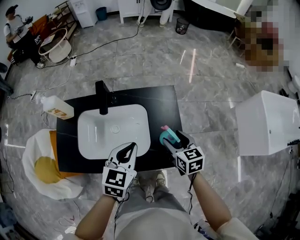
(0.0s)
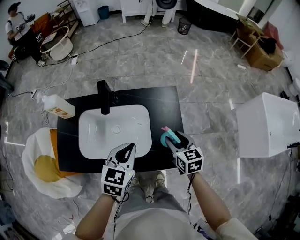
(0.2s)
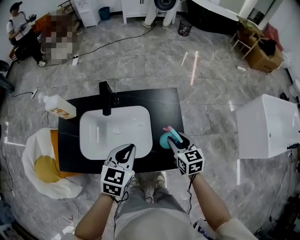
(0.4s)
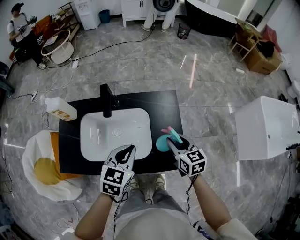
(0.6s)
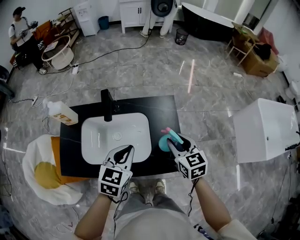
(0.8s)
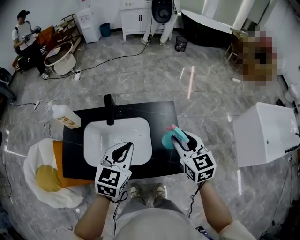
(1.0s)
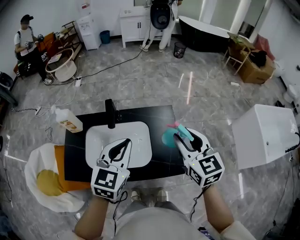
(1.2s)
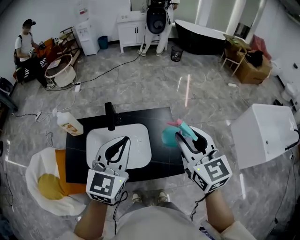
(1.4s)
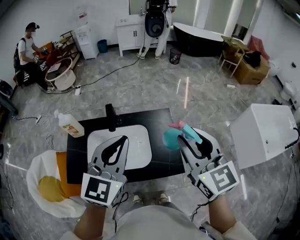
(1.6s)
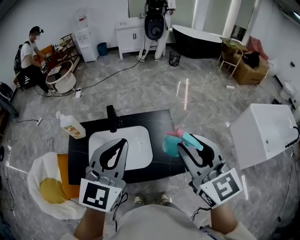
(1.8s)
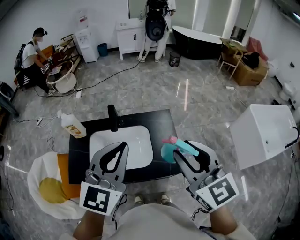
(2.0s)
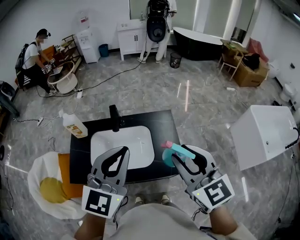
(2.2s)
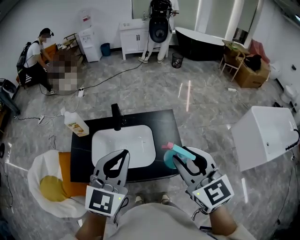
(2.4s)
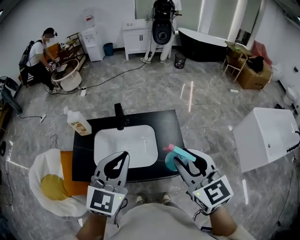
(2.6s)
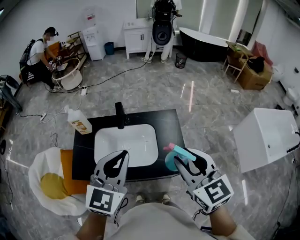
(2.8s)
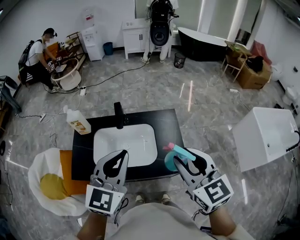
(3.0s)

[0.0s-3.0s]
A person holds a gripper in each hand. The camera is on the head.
0.0s to 1.6s: Both grippers travel together upward, about 30 cm. The left gripper swivels approximately 30 degrees; the right gripper swivels some 30 degrees, and closes.
1.6s to 3.0s: Both grippers move backward, about 5 cm.

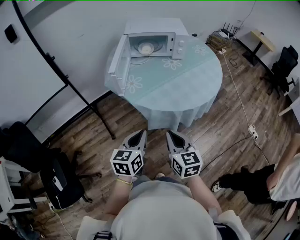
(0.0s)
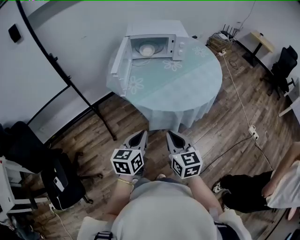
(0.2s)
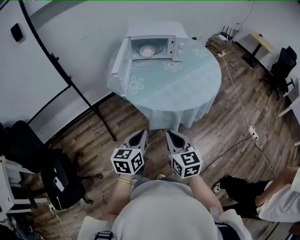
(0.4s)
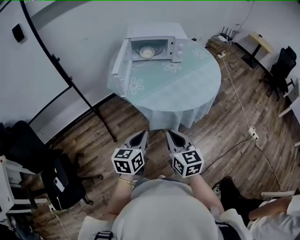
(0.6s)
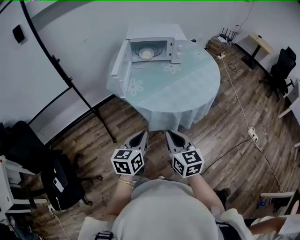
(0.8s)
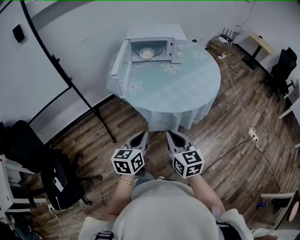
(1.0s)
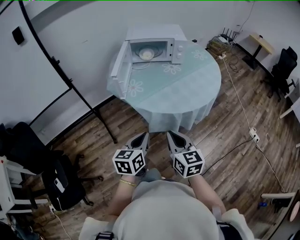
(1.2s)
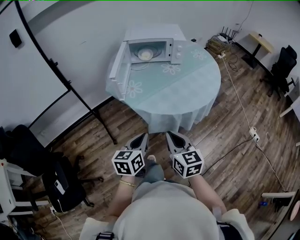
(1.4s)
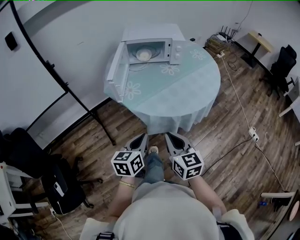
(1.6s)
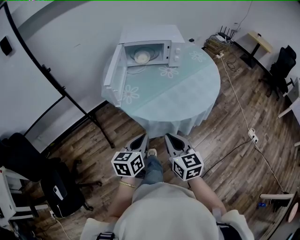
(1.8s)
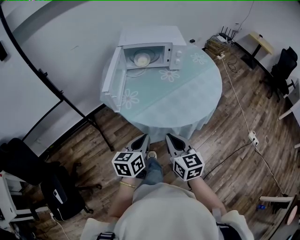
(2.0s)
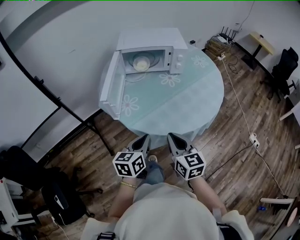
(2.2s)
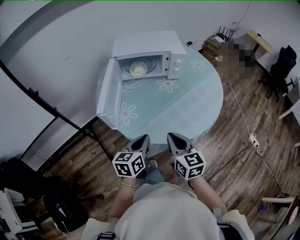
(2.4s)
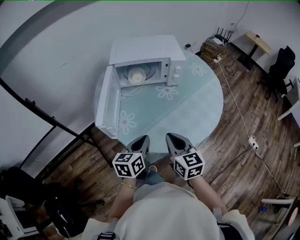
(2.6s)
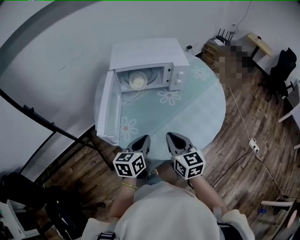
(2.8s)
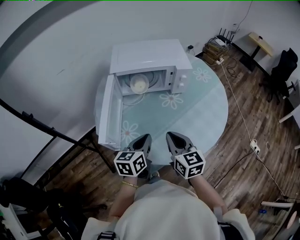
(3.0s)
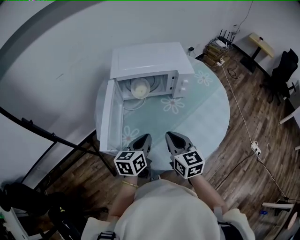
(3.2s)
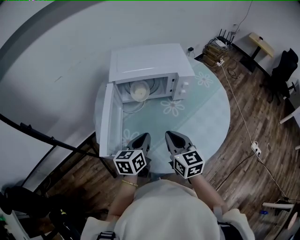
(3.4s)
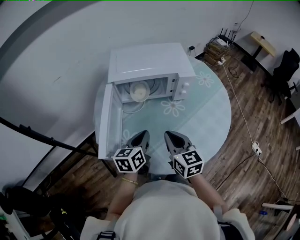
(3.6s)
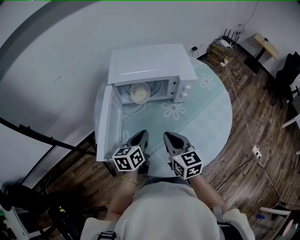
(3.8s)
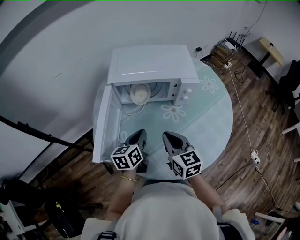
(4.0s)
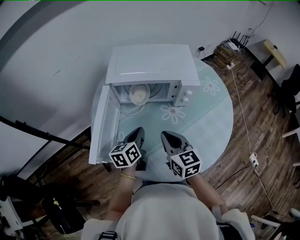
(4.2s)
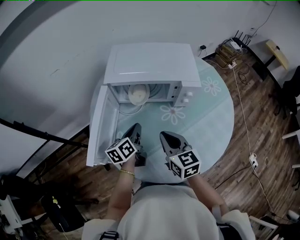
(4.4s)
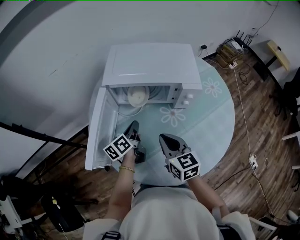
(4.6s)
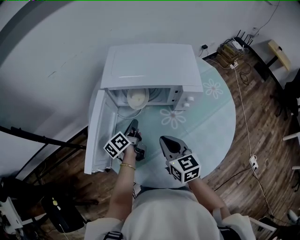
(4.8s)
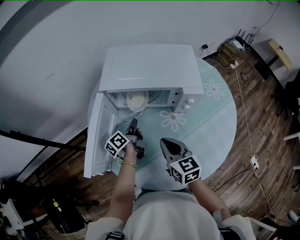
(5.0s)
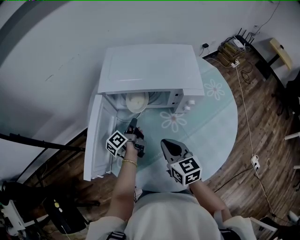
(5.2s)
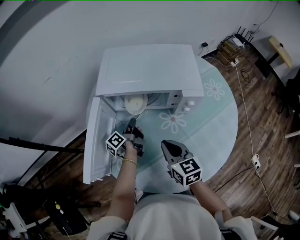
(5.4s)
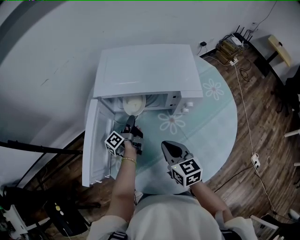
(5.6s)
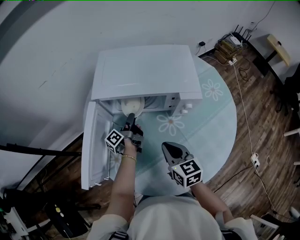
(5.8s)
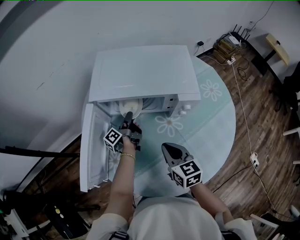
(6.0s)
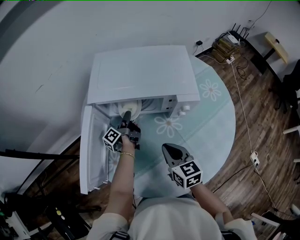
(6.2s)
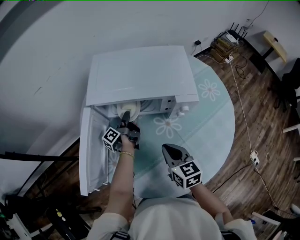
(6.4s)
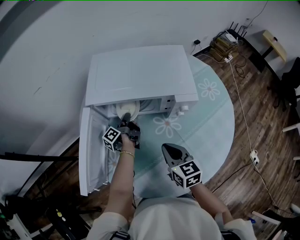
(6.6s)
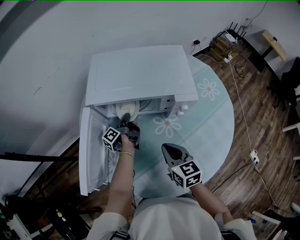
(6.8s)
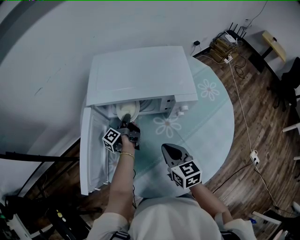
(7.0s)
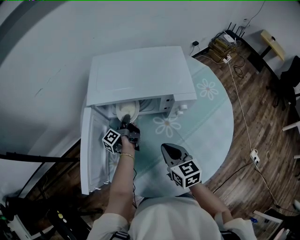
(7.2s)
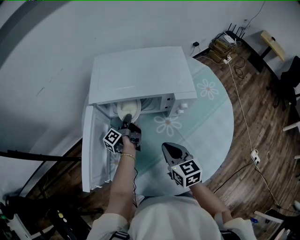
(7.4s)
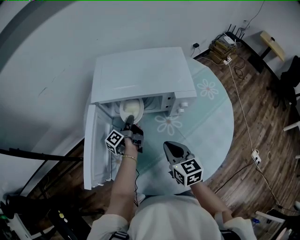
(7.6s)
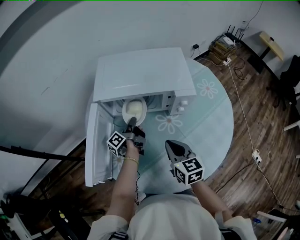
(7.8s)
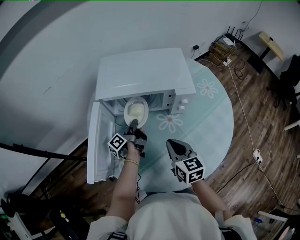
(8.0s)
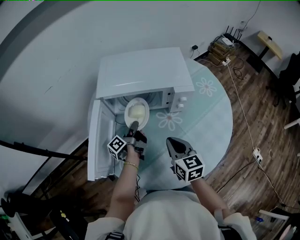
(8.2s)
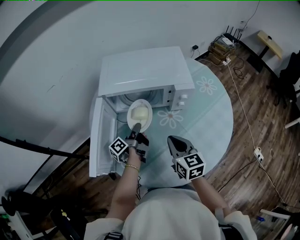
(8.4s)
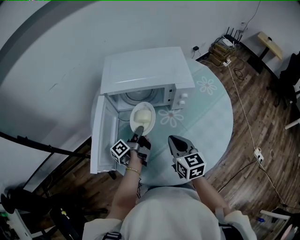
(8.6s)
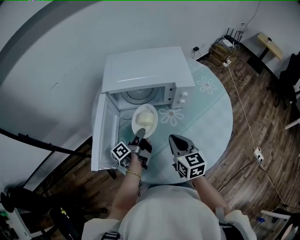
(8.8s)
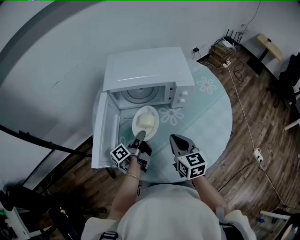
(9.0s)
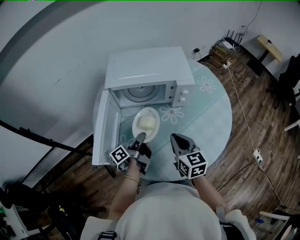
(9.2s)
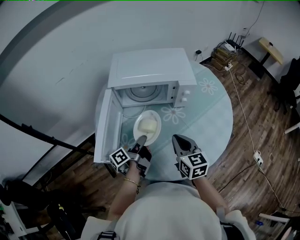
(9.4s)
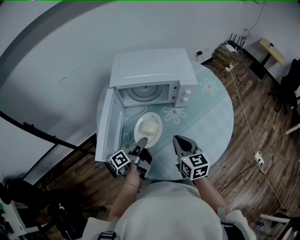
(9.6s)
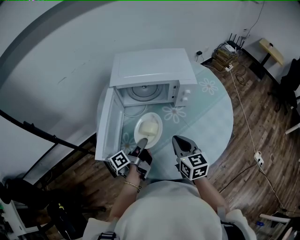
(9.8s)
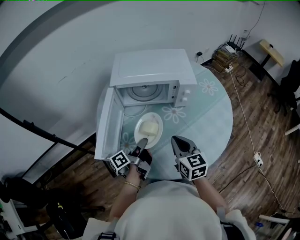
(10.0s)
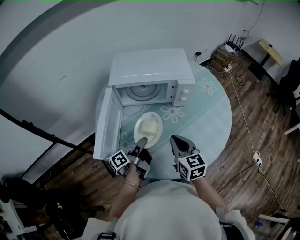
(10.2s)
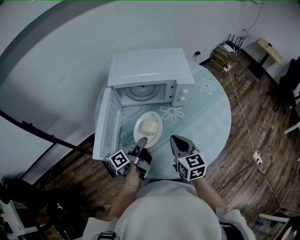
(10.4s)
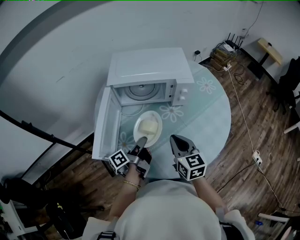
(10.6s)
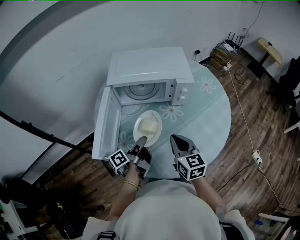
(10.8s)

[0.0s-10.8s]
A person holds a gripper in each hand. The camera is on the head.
0.0s to 1.6s: The grippers stay close to where they were, moving slightly.
1.6s to 3.0s: The grippers both shift forward by some 30 cm.
3.0s to 4.6s: Both grippers travel together forward, approximately 15 cm. The left gripper changes its angle by roughly 40 degrees.
4.6s to 6.2s: The right gripper heads downward, covering some 5 cm; the left gripper is displaced forward and downward by about 15 cm, changes its angle by roughly 40 degrees, and opens up.
6.2s to 7.8s: The left gripper shifts roughly 5 cm backward, and closes.
7.8s to 9.2s: The right gripper goes roughly 5 cm backward. The left gripper goes approximately 15 cm backward.
9.2s to 10.8s: The grippers stay close to where they were, moving slightly.

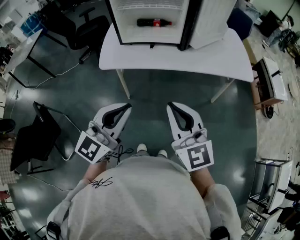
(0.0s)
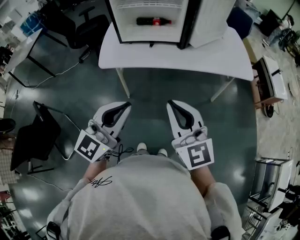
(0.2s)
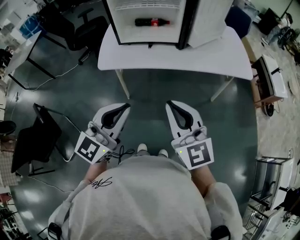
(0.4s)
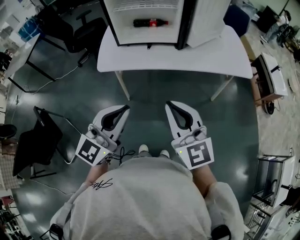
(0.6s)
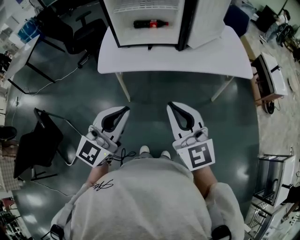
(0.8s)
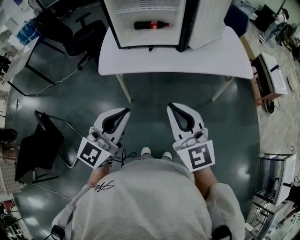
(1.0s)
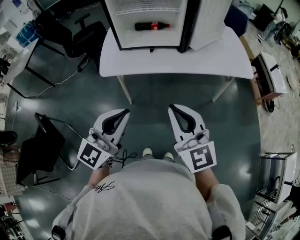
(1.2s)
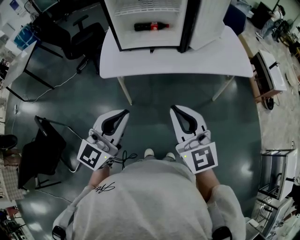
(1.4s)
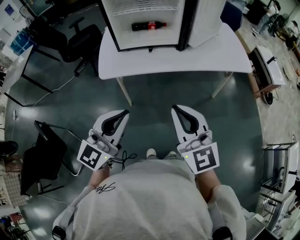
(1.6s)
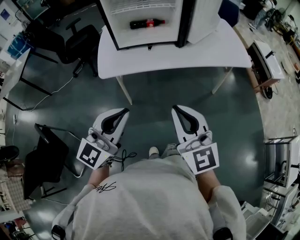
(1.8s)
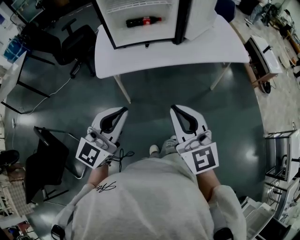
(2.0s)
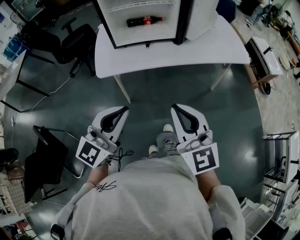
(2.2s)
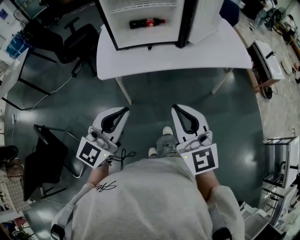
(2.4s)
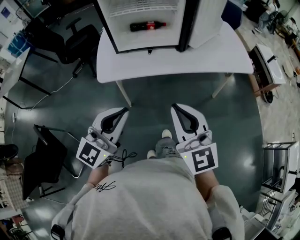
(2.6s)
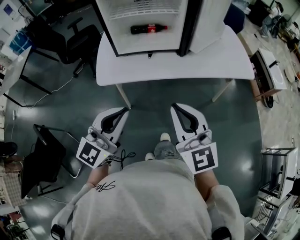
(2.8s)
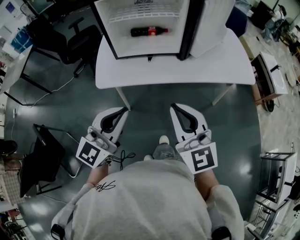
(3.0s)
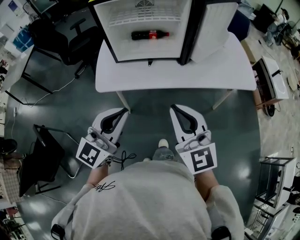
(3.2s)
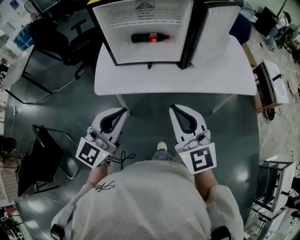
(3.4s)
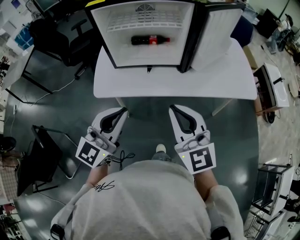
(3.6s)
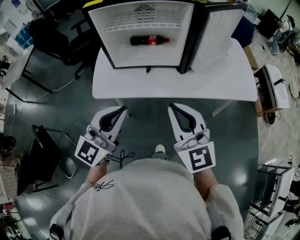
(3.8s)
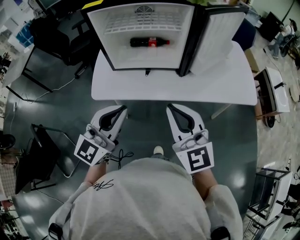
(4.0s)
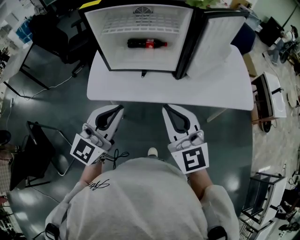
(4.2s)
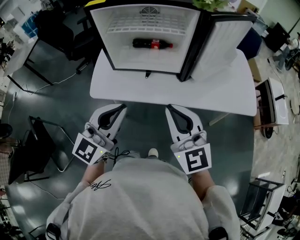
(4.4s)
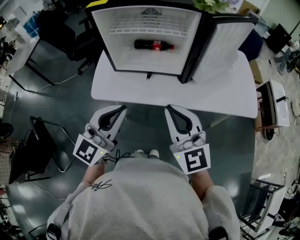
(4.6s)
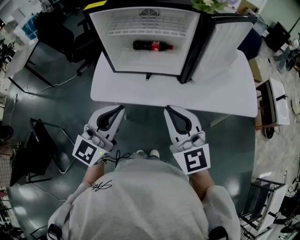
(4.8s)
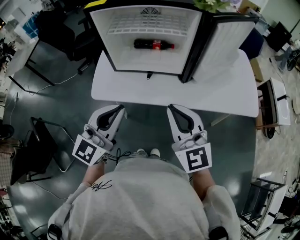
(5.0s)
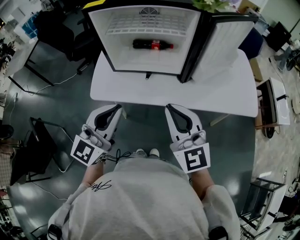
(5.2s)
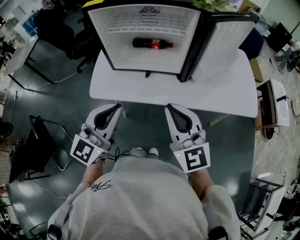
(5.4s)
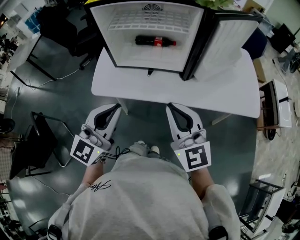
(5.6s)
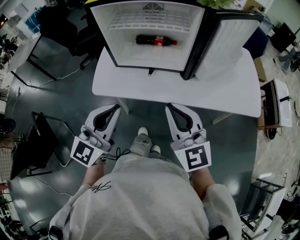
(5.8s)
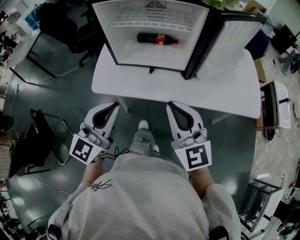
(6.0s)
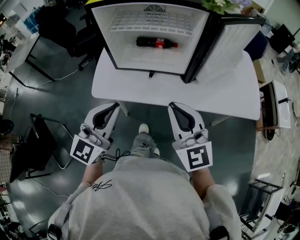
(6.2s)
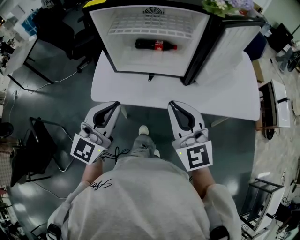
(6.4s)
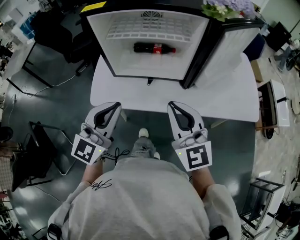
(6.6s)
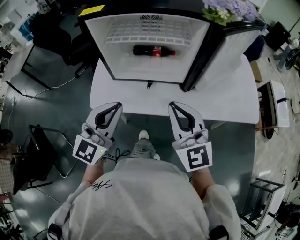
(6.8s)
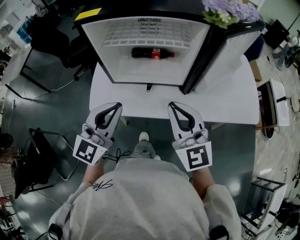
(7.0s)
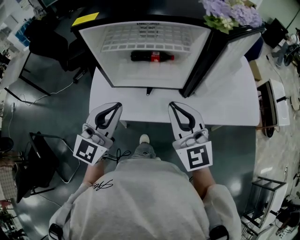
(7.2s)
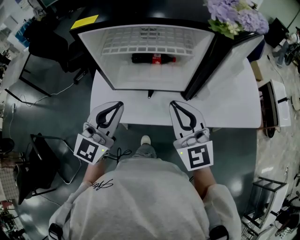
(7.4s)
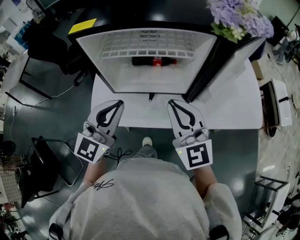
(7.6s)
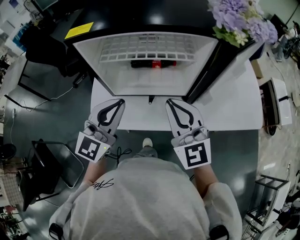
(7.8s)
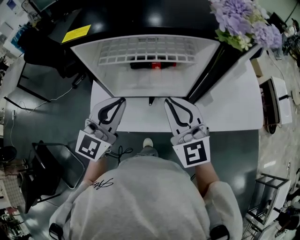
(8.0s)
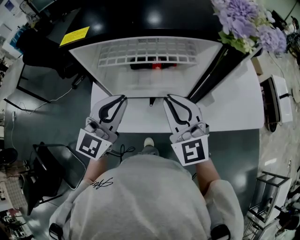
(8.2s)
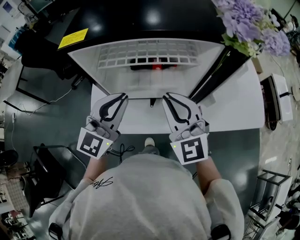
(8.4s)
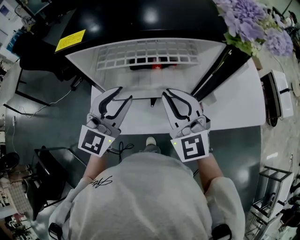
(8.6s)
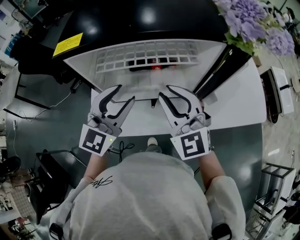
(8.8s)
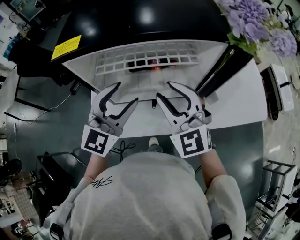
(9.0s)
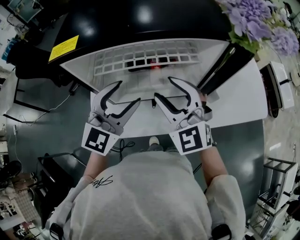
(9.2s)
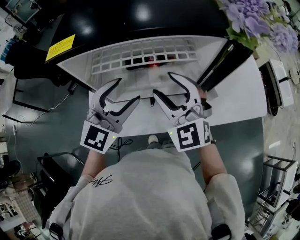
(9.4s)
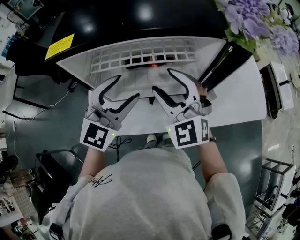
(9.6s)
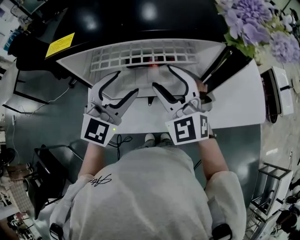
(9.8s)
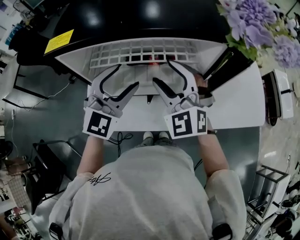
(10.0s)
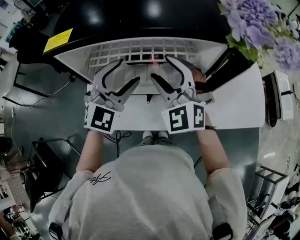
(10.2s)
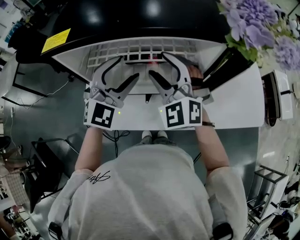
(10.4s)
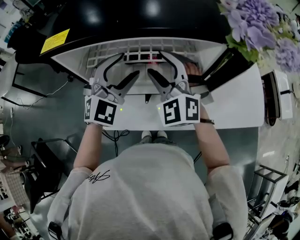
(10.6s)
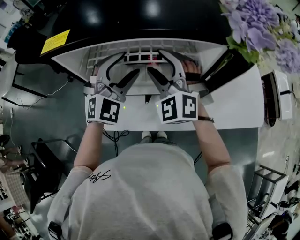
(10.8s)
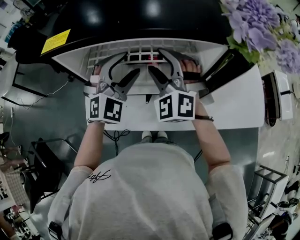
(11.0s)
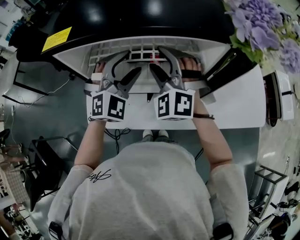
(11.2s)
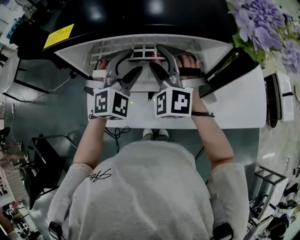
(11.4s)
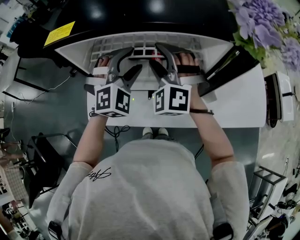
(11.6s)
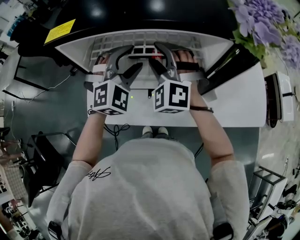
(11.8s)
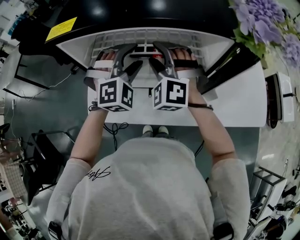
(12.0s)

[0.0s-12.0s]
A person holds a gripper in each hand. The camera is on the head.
0.0s to 1.6s: The left gripper moves to the left, some 5 cm.
1.6s to 3.0s: Both grippers travel together forward, about 10 cm.
3.0s to 4.4s: Both grippers travel together forward, some 10 cm.
4.4s to 6.0s: The grippers stay close to where they were, moving slightly.
6.0s to 7.6s: The grippers both shift forward by approximately 15 cm.
7.6s to 9.0s: The grippers both shift forward by about 10 cm. The left gripper opens its fingers; the right gripper opens its fingers.
9.0s to 10.4s: Both grippers travel together forward, approximately 5 cm. The right gripper opens.
10.4s to 12.0s: The right gripper changes place by about 5 cm, and turns by roughly 20 degrees. The left gripper changes place by some 5 cm, and swivels roughly 30 degrees.
